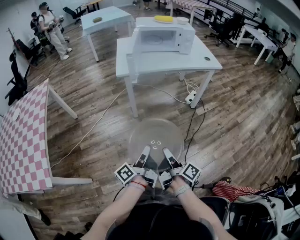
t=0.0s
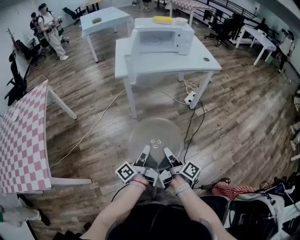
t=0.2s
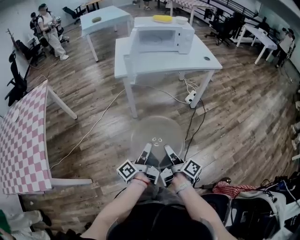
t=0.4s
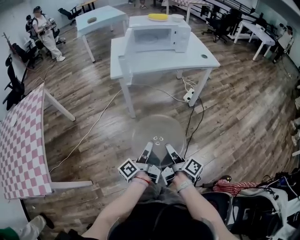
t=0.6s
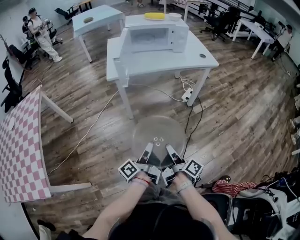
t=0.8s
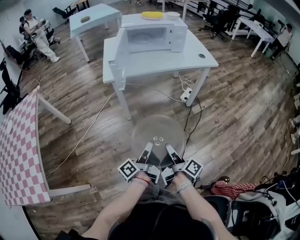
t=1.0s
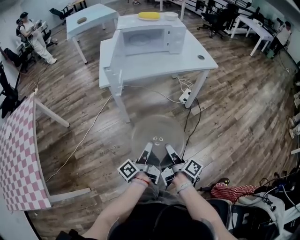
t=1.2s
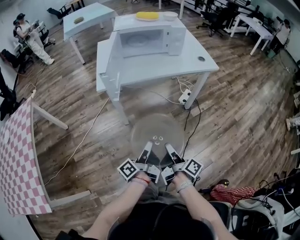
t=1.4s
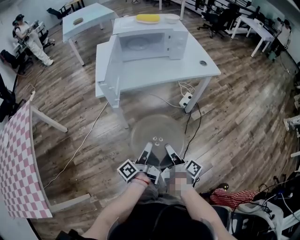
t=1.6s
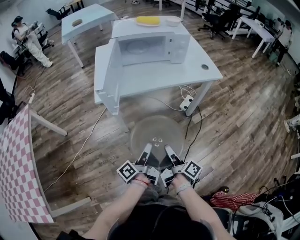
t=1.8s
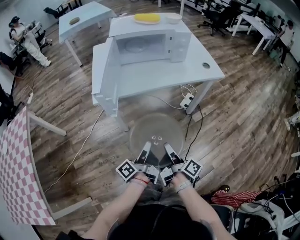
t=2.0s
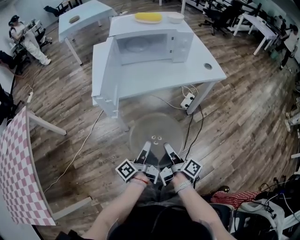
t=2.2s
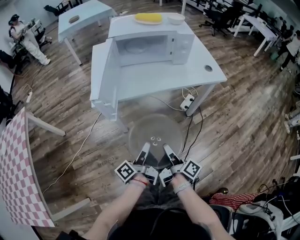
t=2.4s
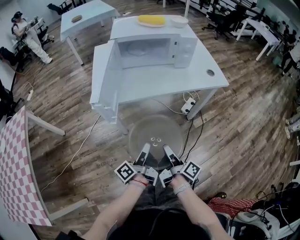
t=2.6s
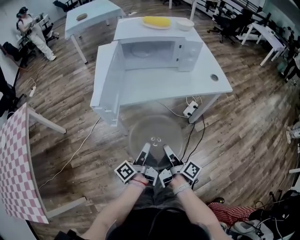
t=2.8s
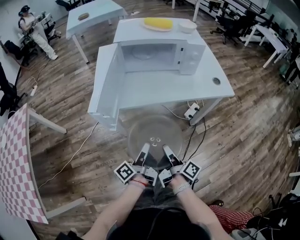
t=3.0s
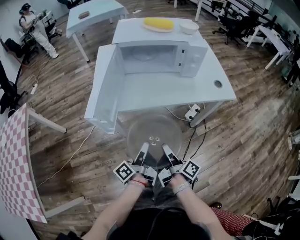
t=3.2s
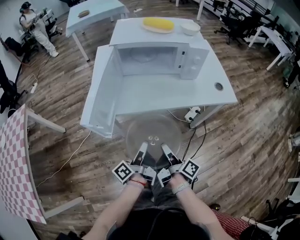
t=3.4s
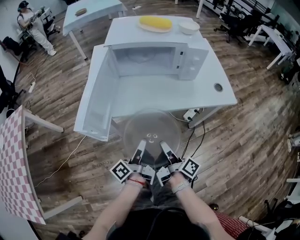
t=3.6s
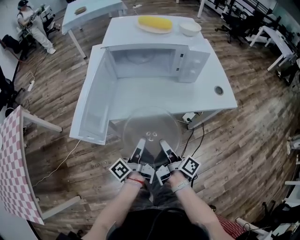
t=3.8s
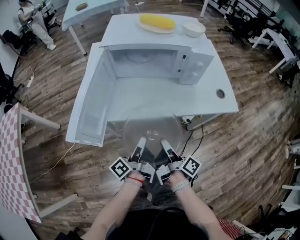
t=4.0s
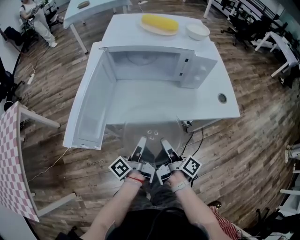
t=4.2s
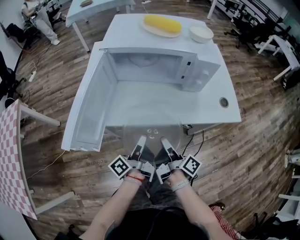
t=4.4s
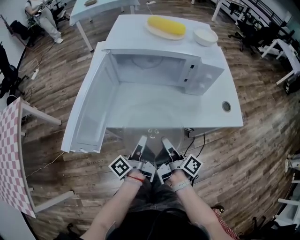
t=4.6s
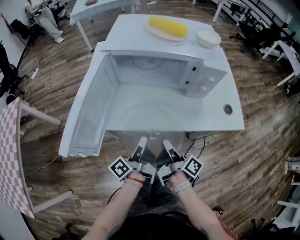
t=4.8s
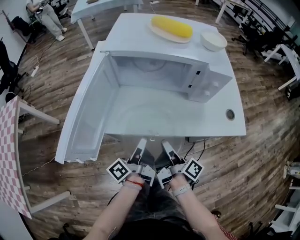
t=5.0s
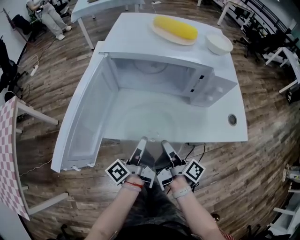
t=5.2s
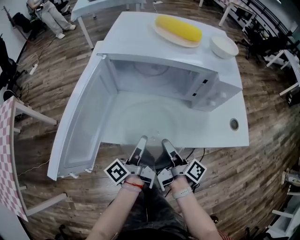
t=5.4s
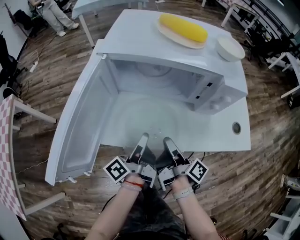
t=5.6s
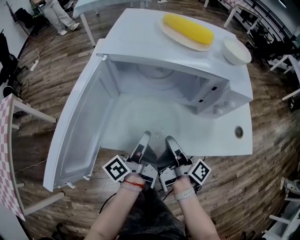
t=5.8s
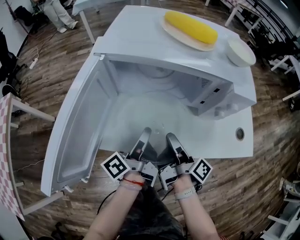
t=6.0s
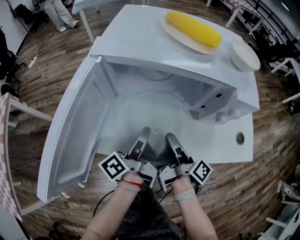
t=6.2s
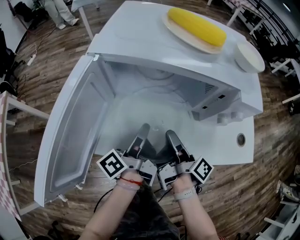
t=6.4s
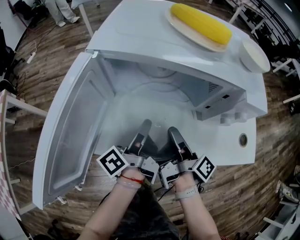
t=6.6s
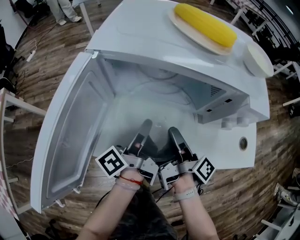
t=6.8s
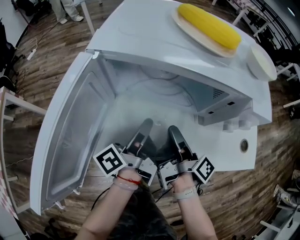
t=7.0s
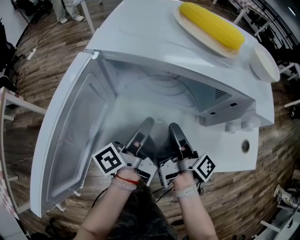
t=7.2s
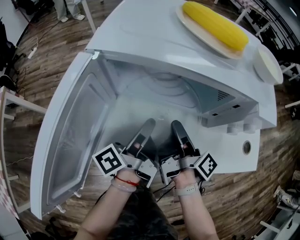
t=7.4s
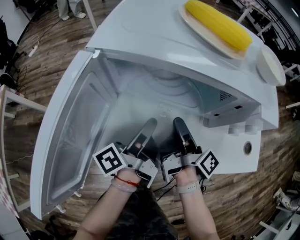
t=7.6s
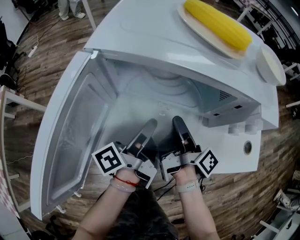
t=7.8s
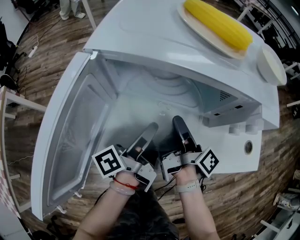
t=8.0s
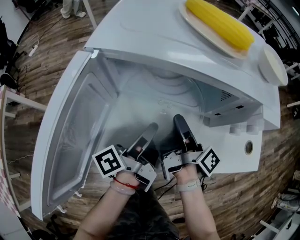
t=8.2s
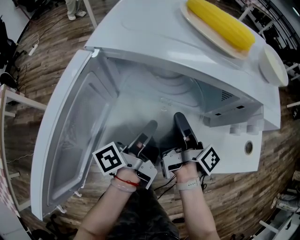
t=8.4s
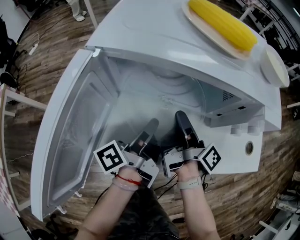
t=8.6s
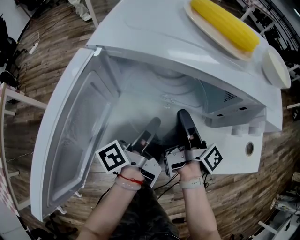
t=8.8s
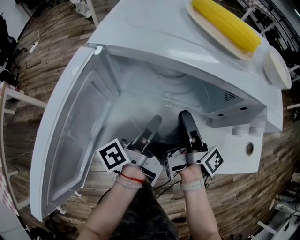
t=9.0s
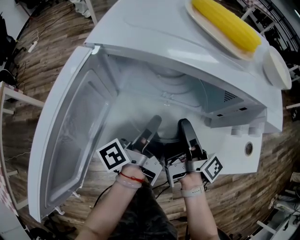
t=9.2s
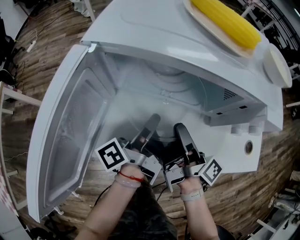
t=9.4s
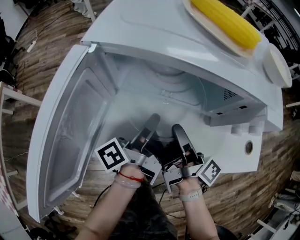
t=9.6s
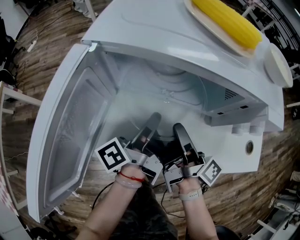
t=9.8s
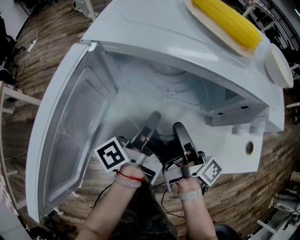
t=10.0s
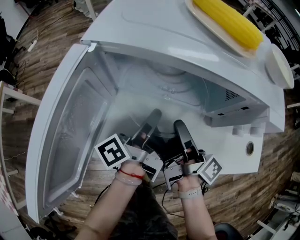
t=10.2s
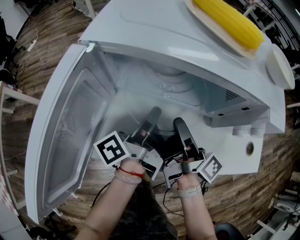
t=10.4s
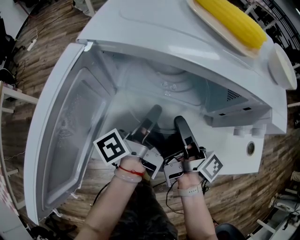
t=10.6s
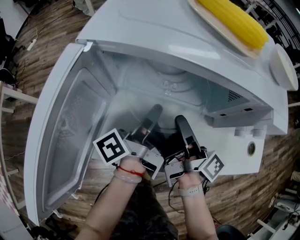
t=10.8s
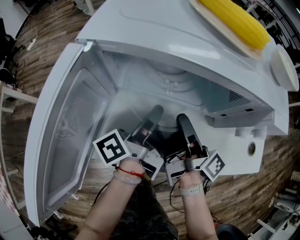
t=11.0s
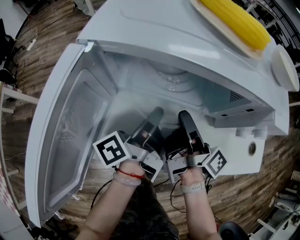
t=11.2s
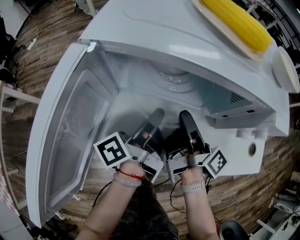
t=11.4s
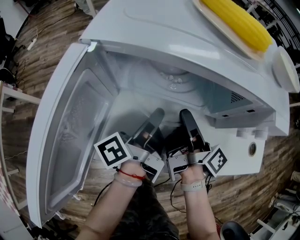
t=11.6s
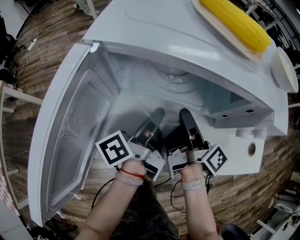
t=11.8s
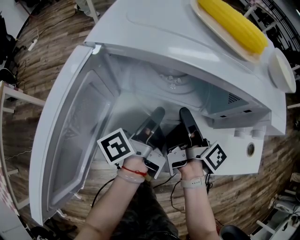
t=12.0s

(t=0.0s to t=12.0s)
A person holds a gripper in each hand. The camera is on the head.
t=0.0s - t=1.6s: The right gripper ends up roughly 20 cm from where it was.
t=1.6s - t=3.0s: The right gripper moves approximately 15 cm.
t=3.0s - t=4.4s: The right gripper changes place by roughly 15 cm.
t=4.4s - t=6.0s: The right gripper ends up approximately 15 cm from where it was.
t=6.0s - t=7.6s: The right gripper shifts by approximately 10 cm.

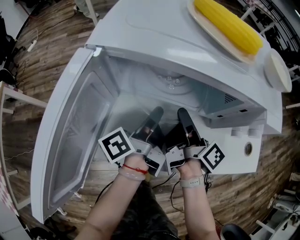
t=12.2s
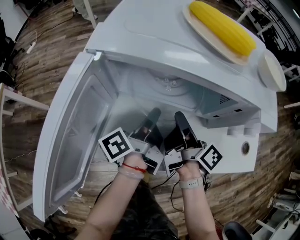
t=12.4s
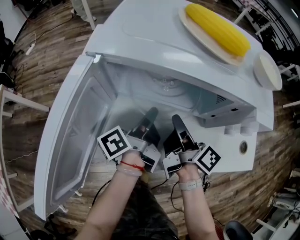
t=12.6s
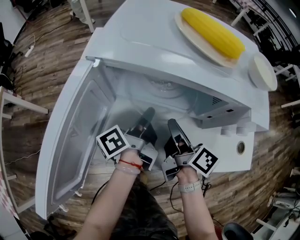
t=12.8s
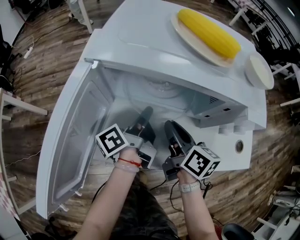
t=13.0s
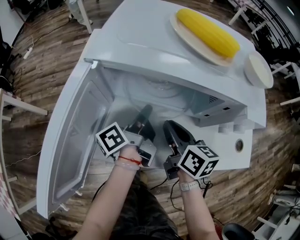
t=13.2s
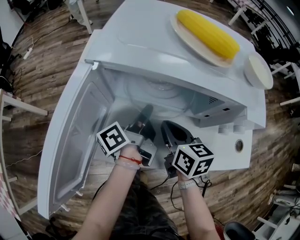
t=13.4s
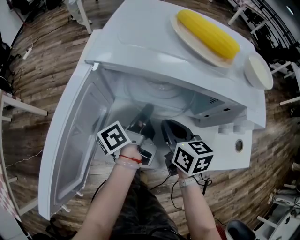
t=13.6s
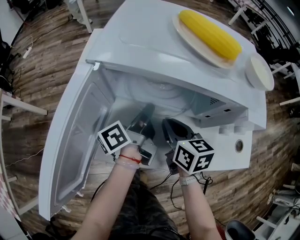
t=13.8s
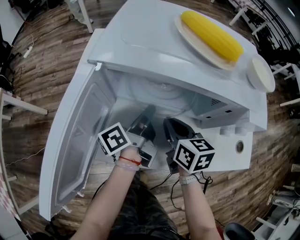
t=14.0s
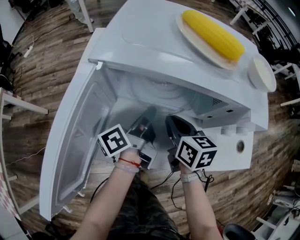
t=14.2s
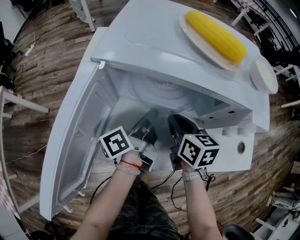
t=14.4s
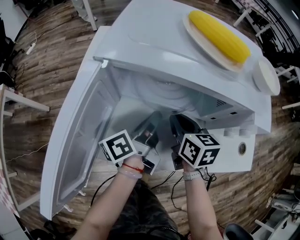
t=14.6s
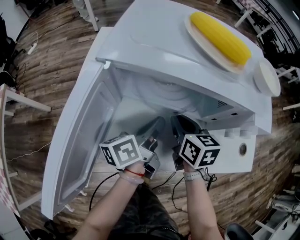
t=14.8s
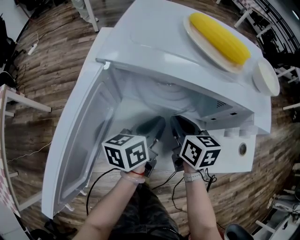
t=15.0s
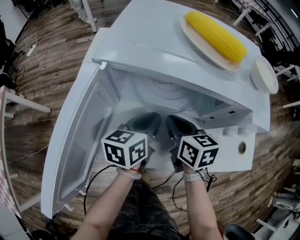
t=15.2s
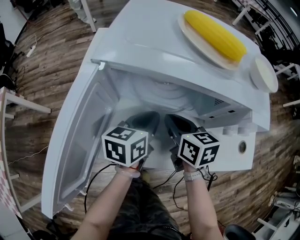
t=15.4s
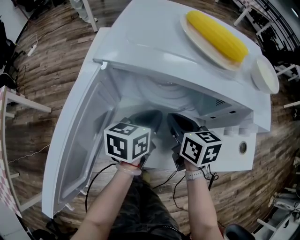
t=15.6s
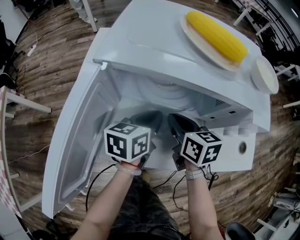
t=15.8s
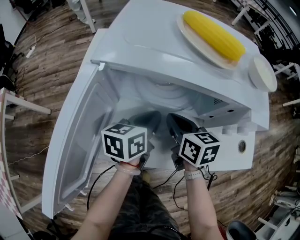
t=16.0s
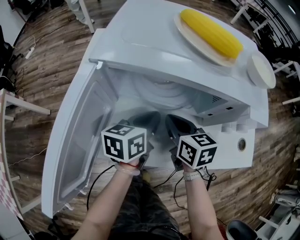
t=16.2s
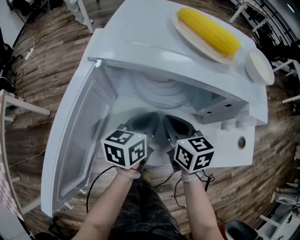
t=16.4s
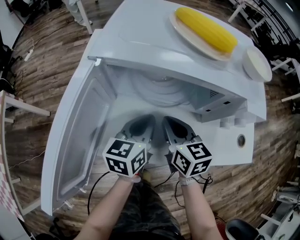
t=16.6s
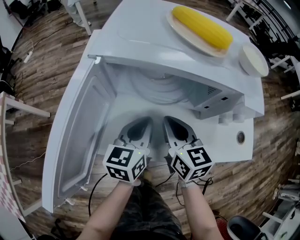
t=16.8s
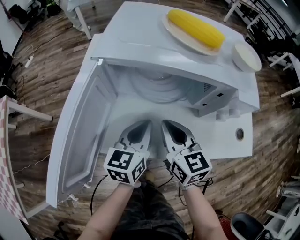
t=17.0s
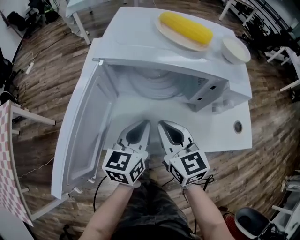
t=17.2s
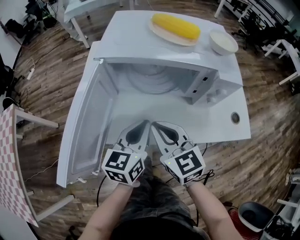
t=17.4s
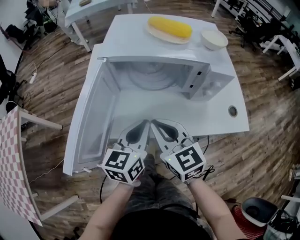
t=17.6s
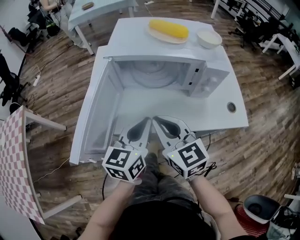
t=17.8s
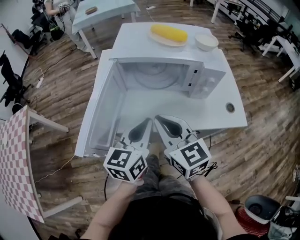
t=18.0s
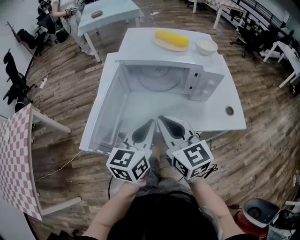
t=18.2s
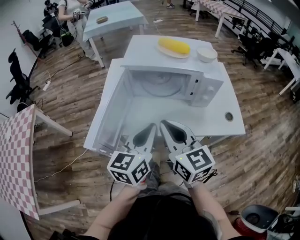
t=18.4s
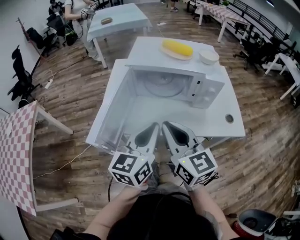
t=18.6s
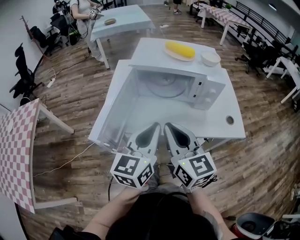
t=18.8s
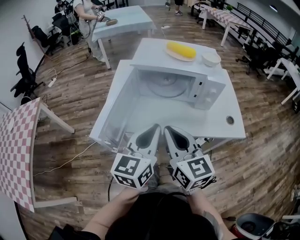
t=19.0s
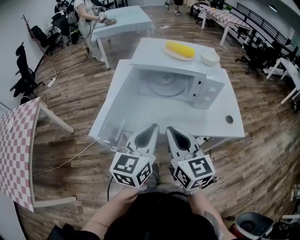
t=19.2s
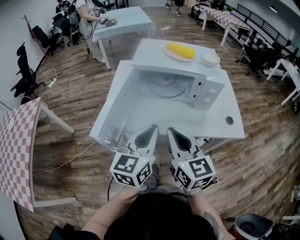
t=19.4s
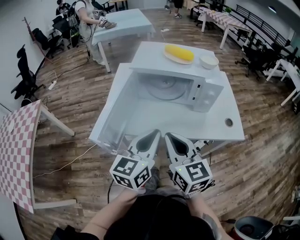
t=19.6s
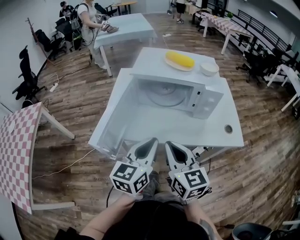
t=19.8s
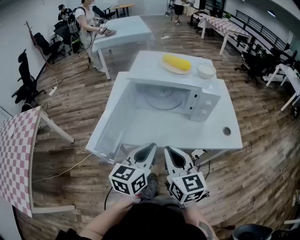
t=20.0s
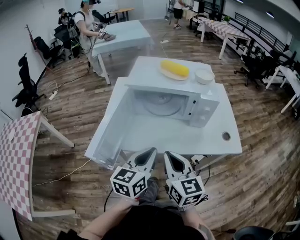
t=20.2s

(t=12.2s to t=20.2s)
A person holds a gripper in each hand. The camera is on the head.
t=12.2s - t=13.8s: The right gripper twists approximately 60 degrees counterclockwise, seen from behind.
t=15.4s - t=17.0s: The right gripper changes place by some 10 cm, and rotates roughly 20 degrees.
t=17.0s - t=18.6s: The right gripper shifts roughly 20 cm upward.
t=18.6s - t=20.2s: The right gripper travels downward by about 5 cm.

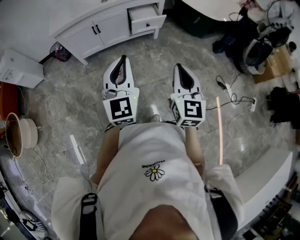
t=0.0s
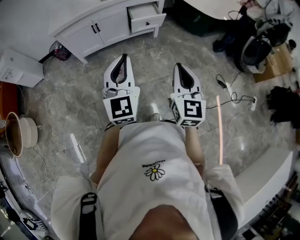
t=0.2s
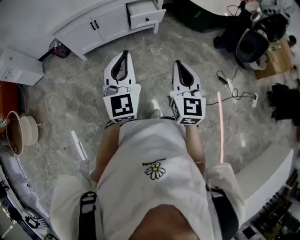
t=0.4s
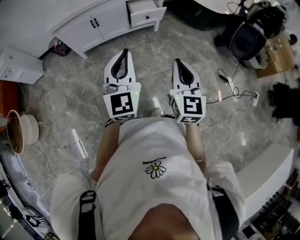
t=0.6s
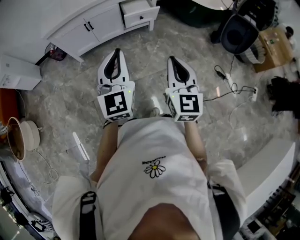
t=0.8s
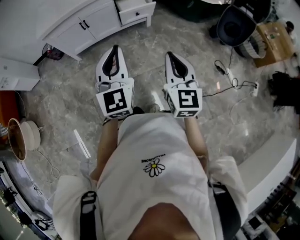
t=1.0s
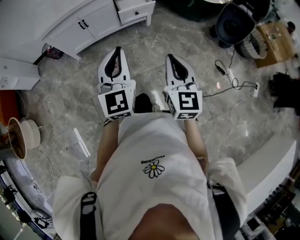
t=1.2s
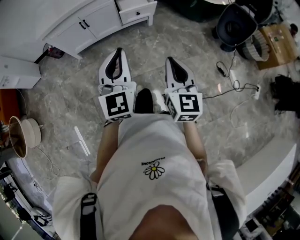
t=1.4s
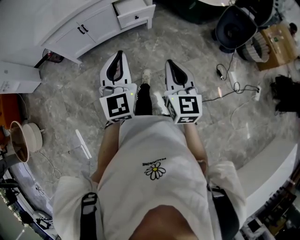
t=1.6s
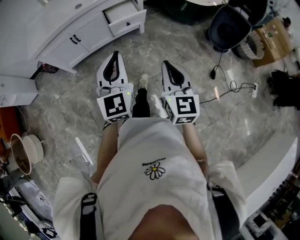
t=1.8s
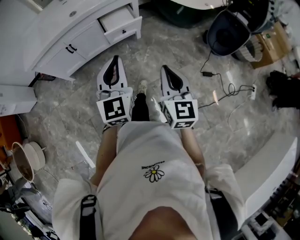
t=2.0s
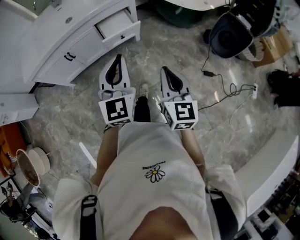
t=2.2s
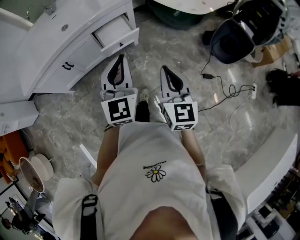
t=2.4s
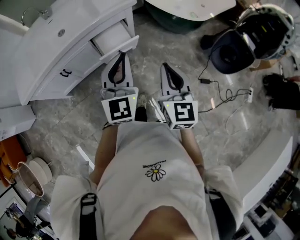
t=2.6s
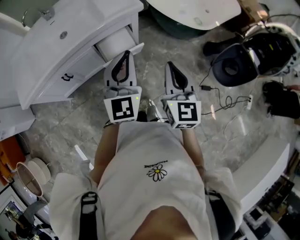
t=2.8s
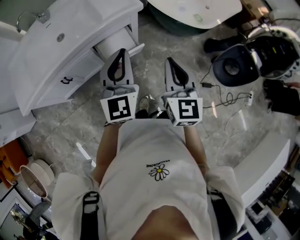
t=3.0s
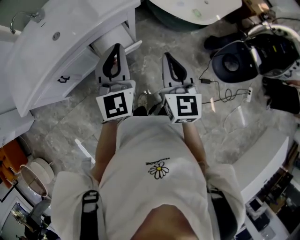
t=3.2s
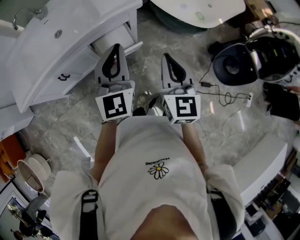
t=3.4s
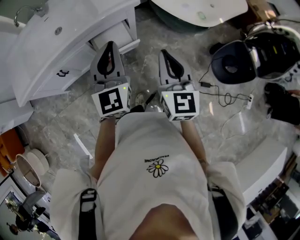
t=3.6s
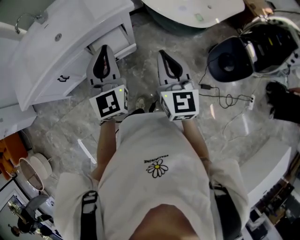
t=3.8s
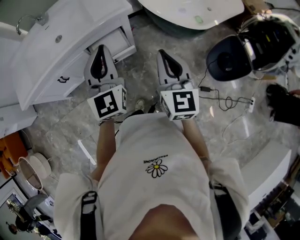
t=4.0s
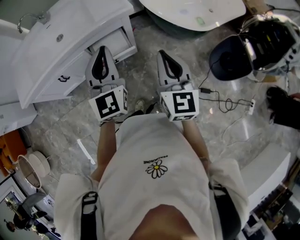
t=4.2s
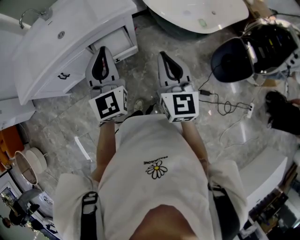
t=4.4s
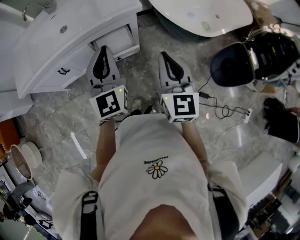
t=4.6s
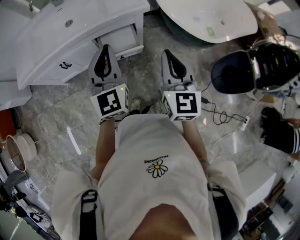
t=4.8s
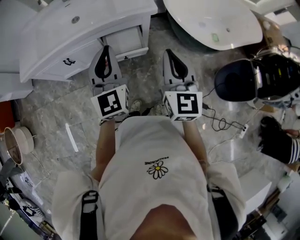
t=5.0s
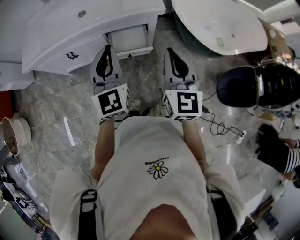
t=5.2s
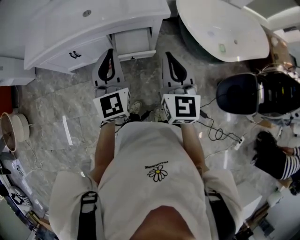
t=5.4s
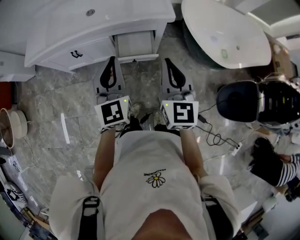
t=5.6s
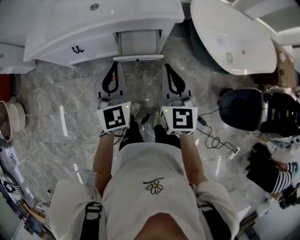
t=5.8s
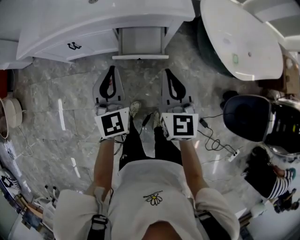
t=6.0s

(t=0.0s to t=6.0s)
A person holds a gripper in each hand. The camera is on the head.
t=0.0s - t=1.6s: The right gripper shifts by approximately 10 cm. Meanwhile the left gripper travels to the right and forward by approximately 10 cm.
t=1.6s - t=3.0s: Both grippers move forward, some 40 cm.
t=3.0s - t=4.4s: The right gripper moves to the right, some 5 cm.
t=4.4s - t=6.0s: The left gripper is displaced downward and to the left by approximately 15 cm, and changes its angle by about 20 degrees. Meanwhile the right gripper moves downward, forward and to the left, about 15 cm, and rotates about 20 degrees.
